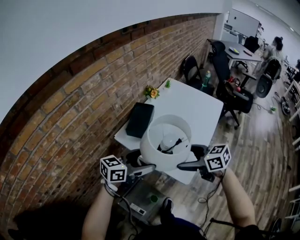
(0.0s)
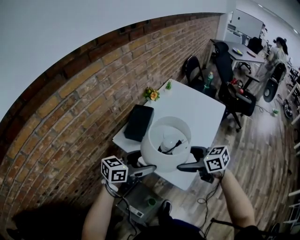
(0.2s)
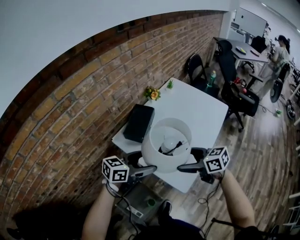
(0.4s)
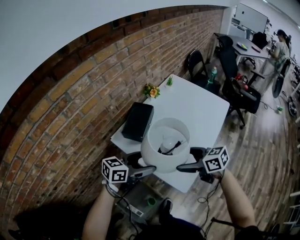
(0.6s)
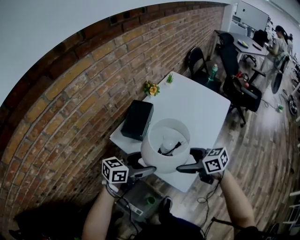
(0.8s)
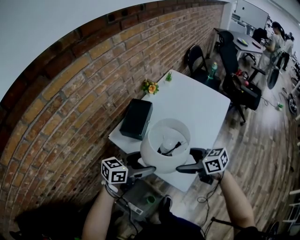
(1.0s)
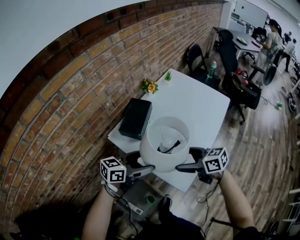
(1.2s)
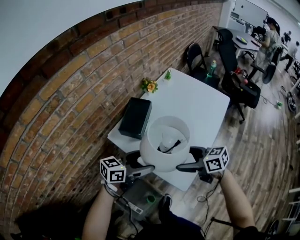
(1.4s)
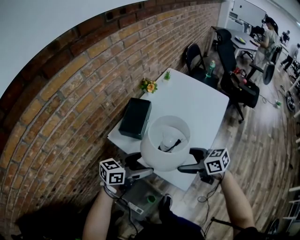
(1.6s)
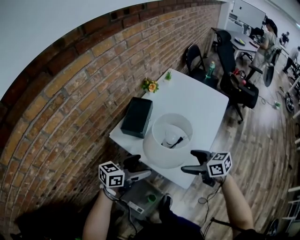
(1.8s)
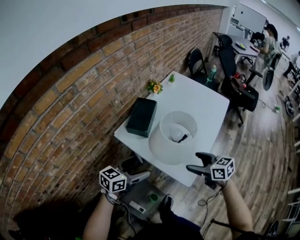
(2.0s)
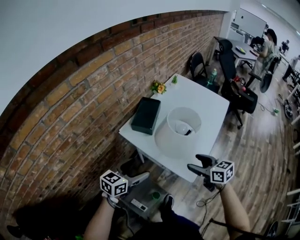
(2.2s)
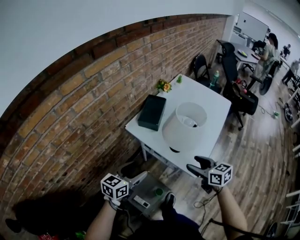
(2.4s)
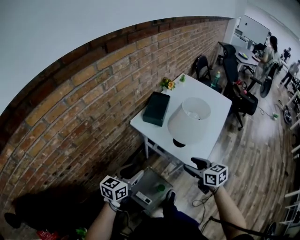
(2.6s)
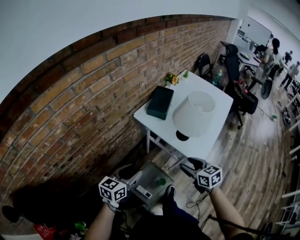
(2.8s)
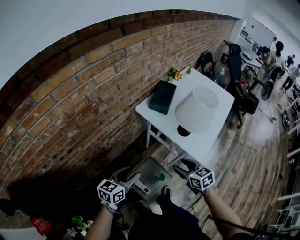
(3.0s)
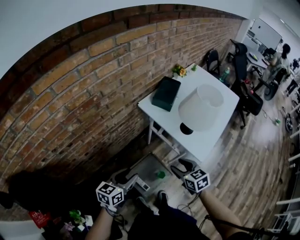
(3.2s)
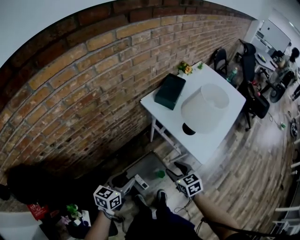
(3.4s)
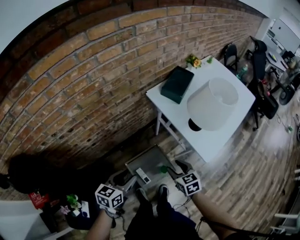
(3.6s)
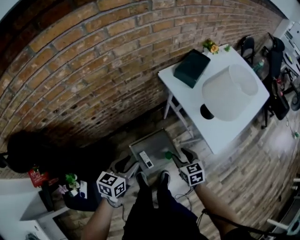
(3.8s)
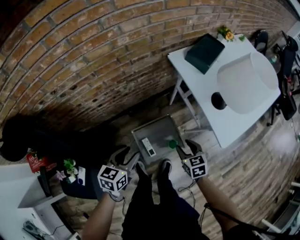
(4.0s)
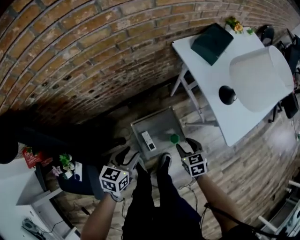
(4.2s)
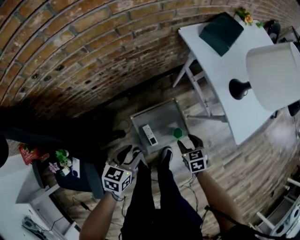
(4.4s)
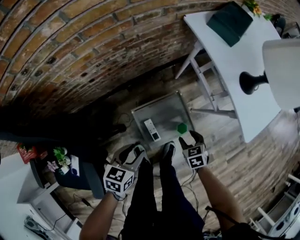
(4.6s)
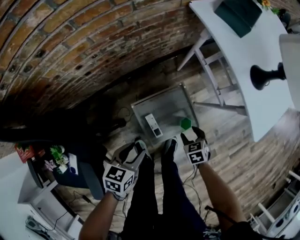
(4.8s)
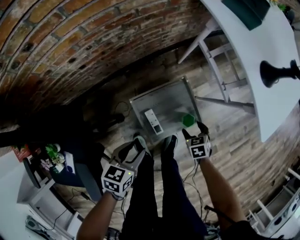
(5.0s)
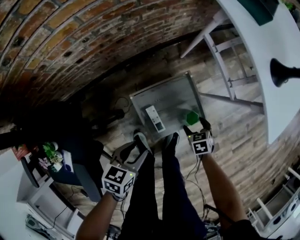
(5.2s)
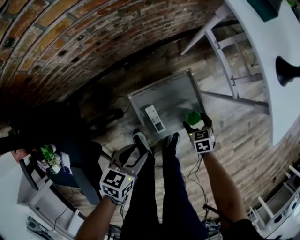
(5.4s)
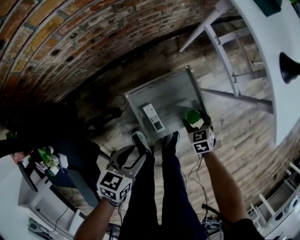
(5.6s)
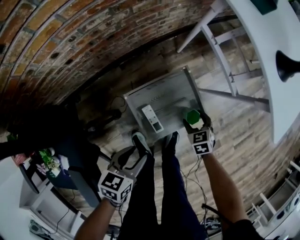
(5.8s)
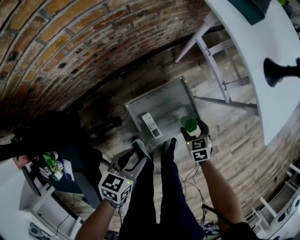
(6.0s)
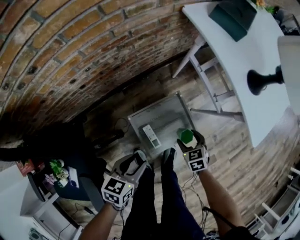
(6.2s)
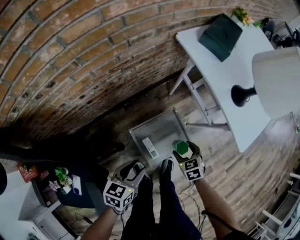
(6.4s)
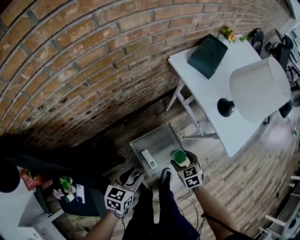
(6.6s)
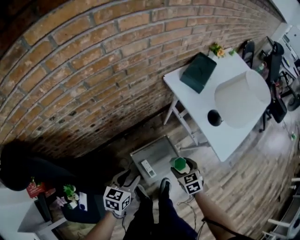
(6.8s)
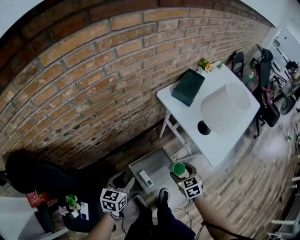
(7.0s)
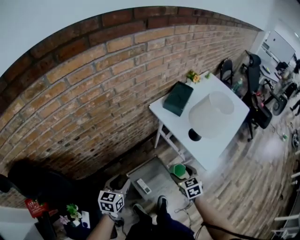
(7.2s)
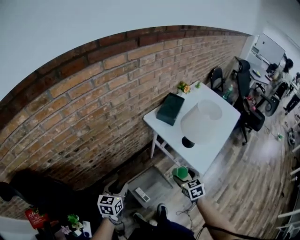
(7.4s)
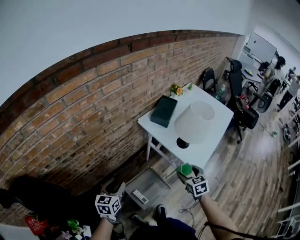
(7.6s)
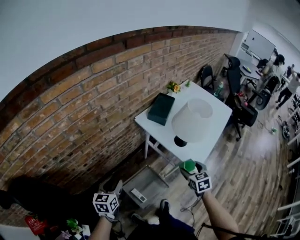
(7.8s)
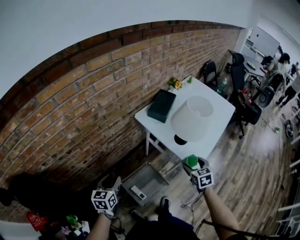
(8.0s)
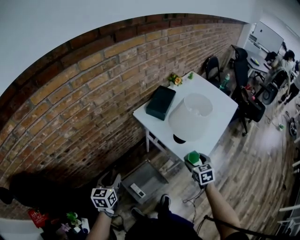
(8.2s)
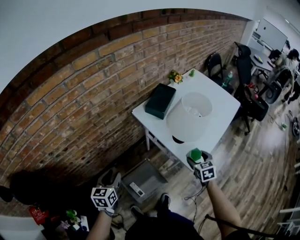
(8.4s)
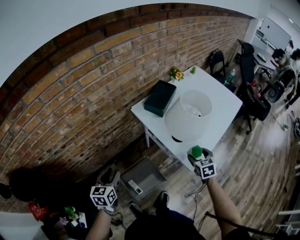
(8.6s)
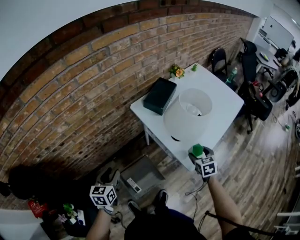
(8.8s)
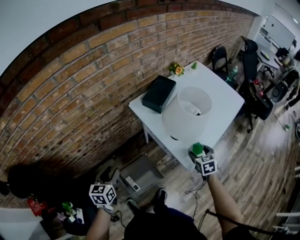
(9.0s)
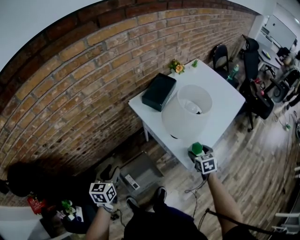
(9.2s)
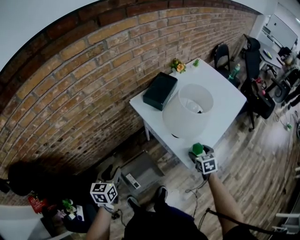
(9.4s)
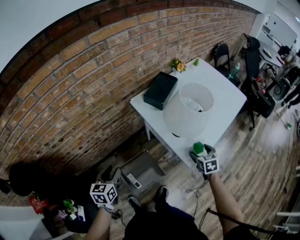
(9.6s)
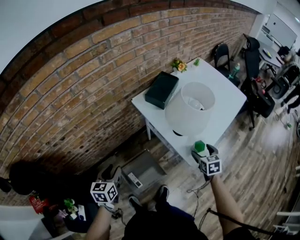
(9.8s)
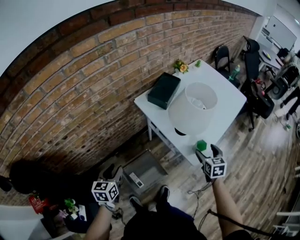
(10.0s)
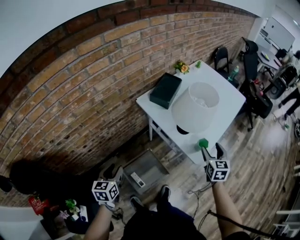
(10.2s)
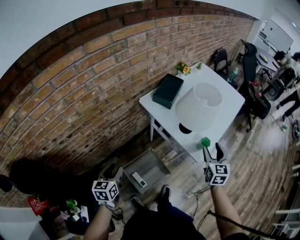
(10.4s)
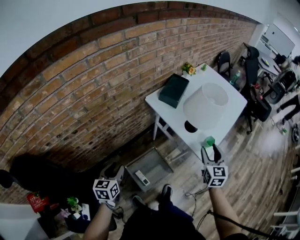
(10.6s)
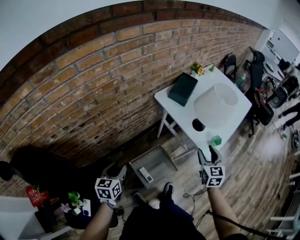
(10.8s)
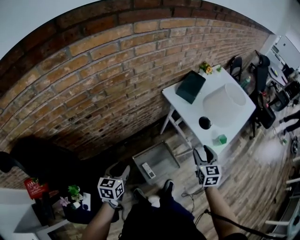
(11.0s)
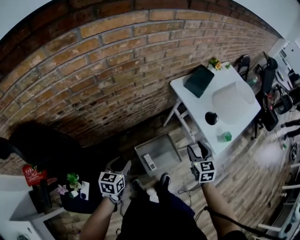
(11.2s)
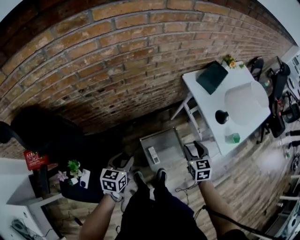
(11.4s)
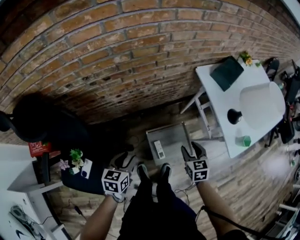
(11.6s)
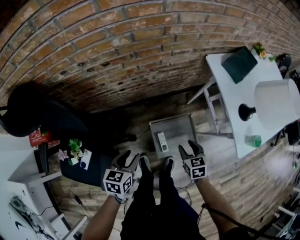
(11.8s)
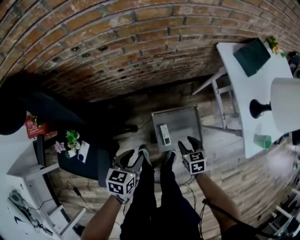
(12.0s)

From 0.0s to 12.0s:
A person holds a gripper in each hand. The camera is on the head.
From 0.0s to 1.6s: The grippers both shift downward by about 10 cm.
From 1.6s to 3.0s: The left gripper shifts by roughly 35 cm, changes its angle by some 30 degrees, and closes up. The right gripper changes place by roughly 30 cm, swivels some 30 degrees, and closes its fingers.
From 3.0s to 4.4s: The right gripper shifts about 30 cm downward, and changes its angle by roughly 20 degrees. The left gripper heads downward and backward, covering approximately 25 cm, and rotates approximately 30 degrees.
From 4.4s to 6.0s: Both grippers travel together downward, some 15 cm.
From 6.0s to 7.6s: Both grippers travel together upward, roughly 40 cm. The left gripper rotates roughly 20 degrees. The right gripper rotates some 30 degrees.
From 7.6s to 9.0s: The left gripper is displaced to the right and forward by about 10 cm. The right gripper heads to the right and forward, covering about 20 cm.
From 9.0s to 10.4s: The right gripper is displaced upward and backward by approximately 15 cm, and rotates roughly 30 degrees, while the left gripper goes approximately 5 cm to the left.
From 10.4s to 12.0s: The right gripper moves approximately 50 cm, and swivels about 50 degrees. The left gripper goes about 20 cm downward, and changes its angle by roughly 20 degrees.

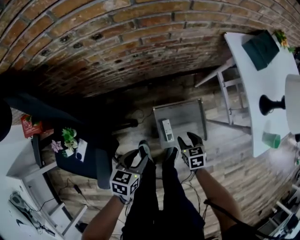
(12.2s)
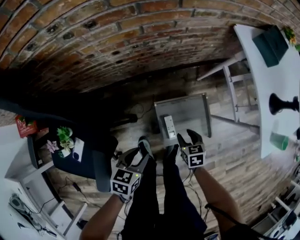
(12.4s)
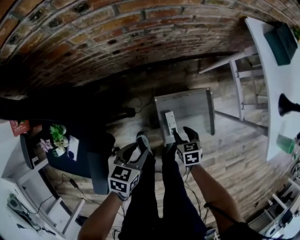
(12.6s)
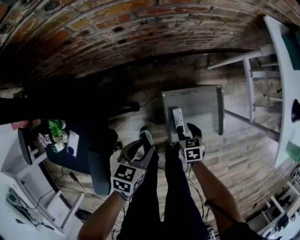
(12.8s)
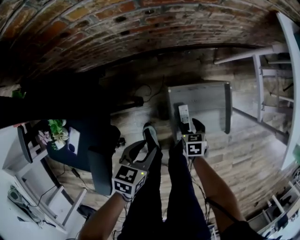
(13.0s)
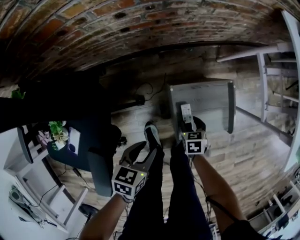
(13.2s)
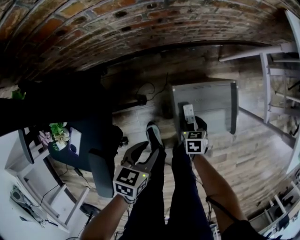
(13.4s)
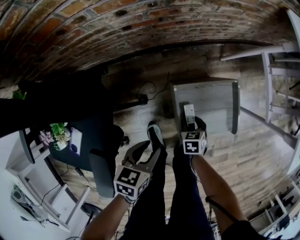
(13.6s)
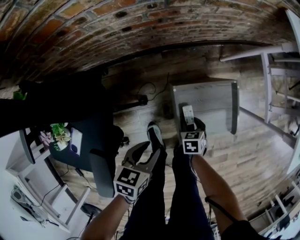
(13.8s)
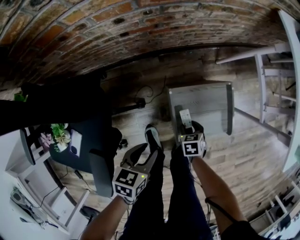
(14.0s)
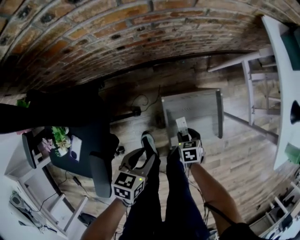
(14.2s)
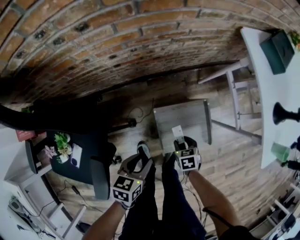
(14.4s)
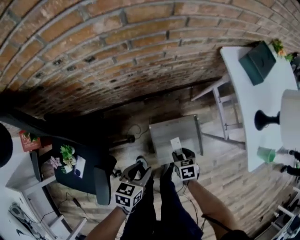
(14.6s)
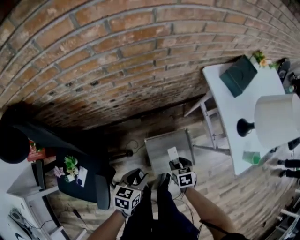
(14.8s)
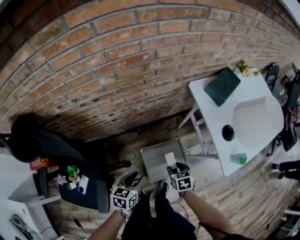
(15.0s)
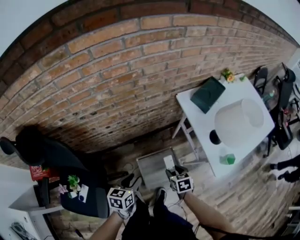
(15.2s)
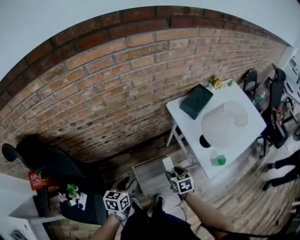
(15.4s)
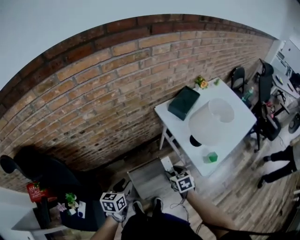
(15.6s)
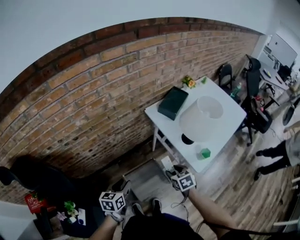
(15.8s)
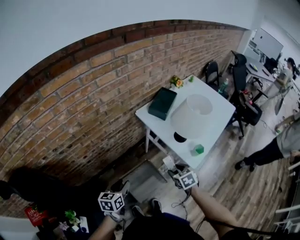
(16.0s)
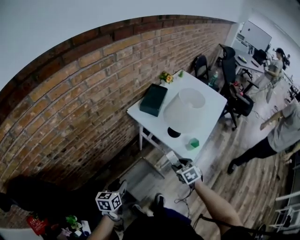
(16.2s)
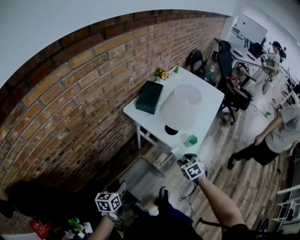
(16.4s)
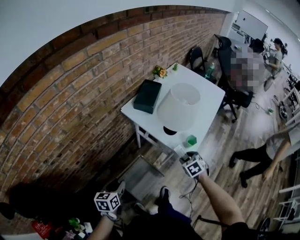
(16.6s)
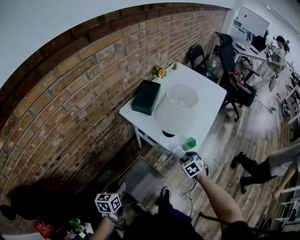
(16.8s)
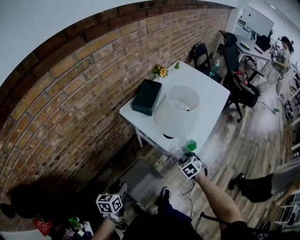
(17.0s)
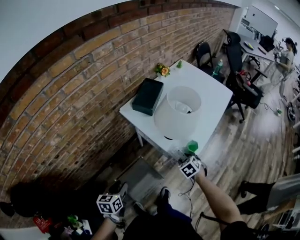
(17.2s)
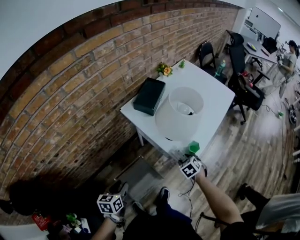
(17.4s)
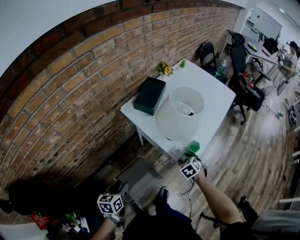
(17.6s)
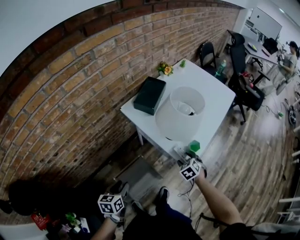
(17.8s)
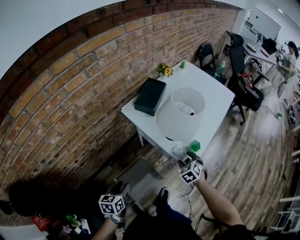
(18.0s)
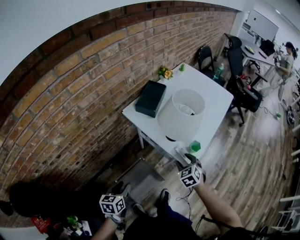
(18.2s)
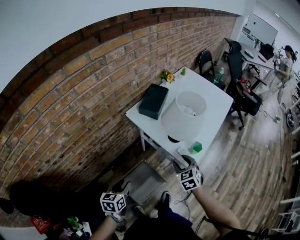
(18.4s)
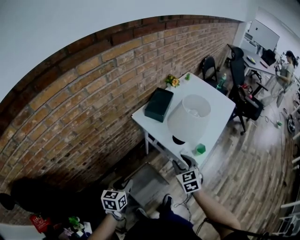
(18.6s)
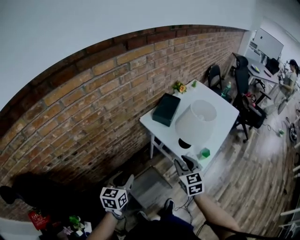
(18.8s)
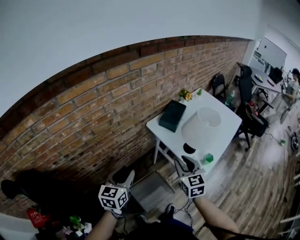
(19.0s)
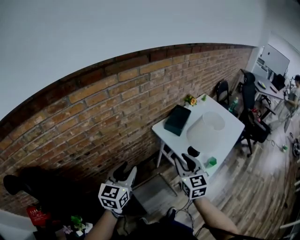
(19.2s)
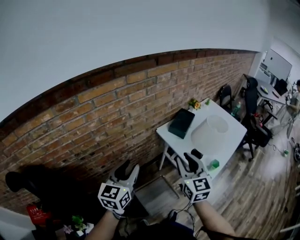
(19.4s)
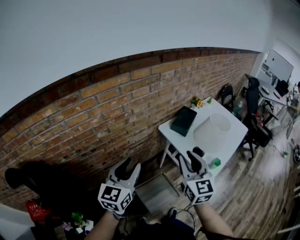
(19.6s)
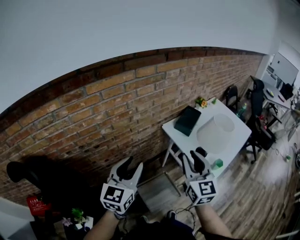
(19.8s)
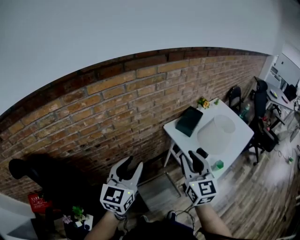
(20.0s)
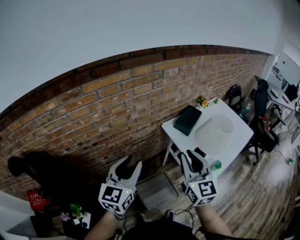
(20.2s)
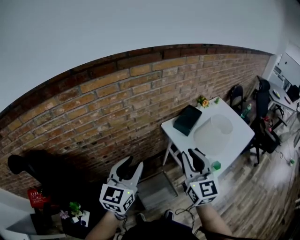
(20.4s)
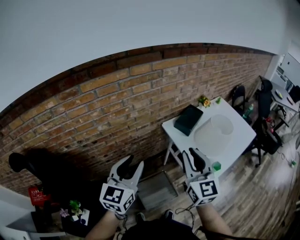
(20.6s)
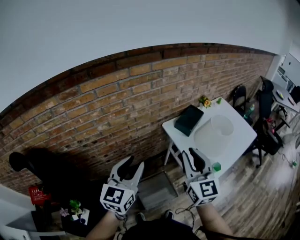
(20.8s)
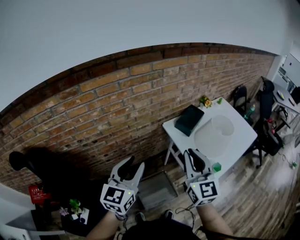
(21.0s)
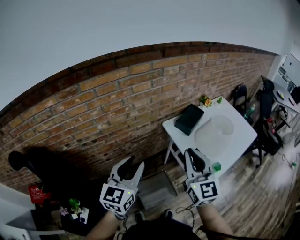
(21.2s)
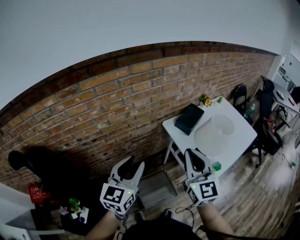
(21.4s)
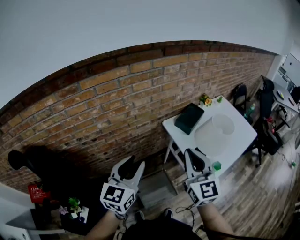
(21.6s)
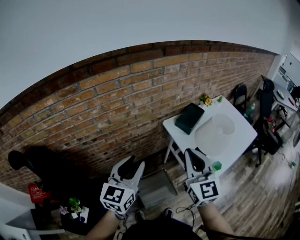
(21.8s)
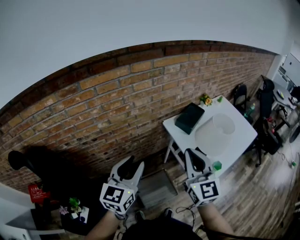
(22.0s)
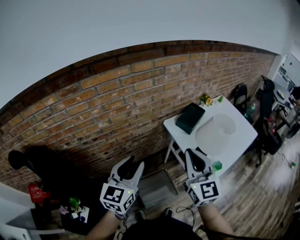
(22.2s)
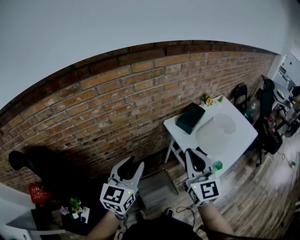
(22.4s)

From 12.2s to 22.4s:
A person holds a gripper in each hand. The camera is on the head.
From 12.2s to 13.6s: The left gripper heads downward, covering approximately 15 cm. The right gripper is displaced downward by about 25 cm.
From 13.6s to 15.2s: The grippers both shift upward by approximately 40 cm.
From 15.2s to 16.6s: The right gripper moves approximately 25 cm, and rotates some 30 degrees; the left gripper changes place by approximately 10 cm.
From 16.6s to 18.0s: The right gripper moves forward, roughly 5 cm. The left gripper travels to the right by roughly 5 cm.
From 18.0s to 19.4s: The two grippers go approximately 40 cm upward and to the left. The left gripper tilts its fingers approximately 30 degrees upward. The right gripper tilts its fingers roughly 40 degrees upward.
From 19.4s to 21.0s: The left gripper is displaced to the right by approximately 5 cm. Meanwhile the right gripper changes place by about 5 cm.
From 21.0s to 22.4s: There are only small adjustments of the grippers.

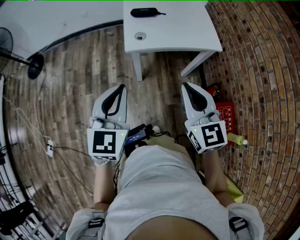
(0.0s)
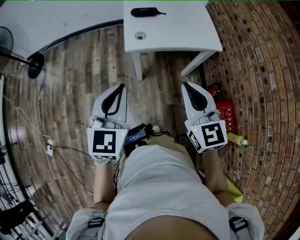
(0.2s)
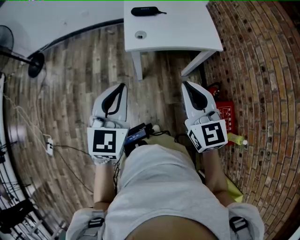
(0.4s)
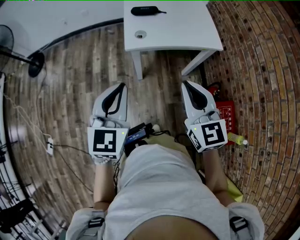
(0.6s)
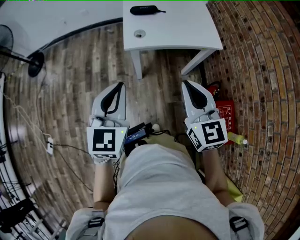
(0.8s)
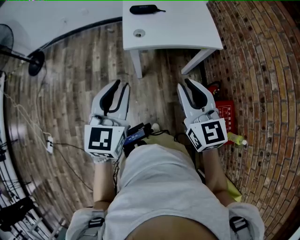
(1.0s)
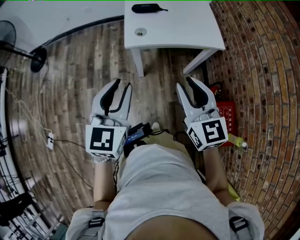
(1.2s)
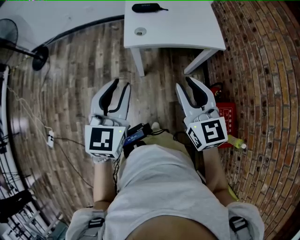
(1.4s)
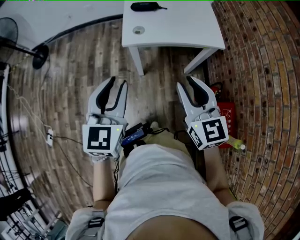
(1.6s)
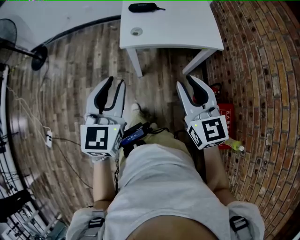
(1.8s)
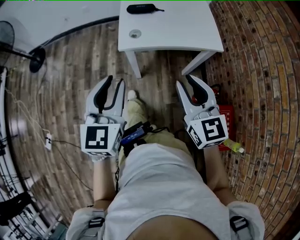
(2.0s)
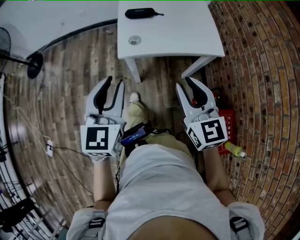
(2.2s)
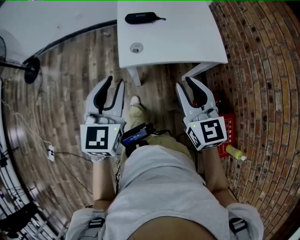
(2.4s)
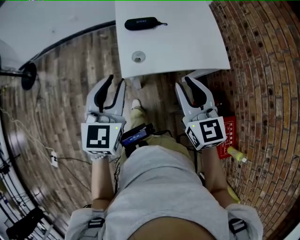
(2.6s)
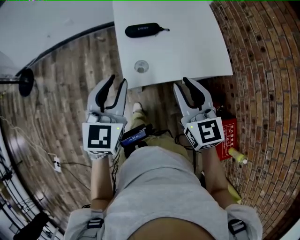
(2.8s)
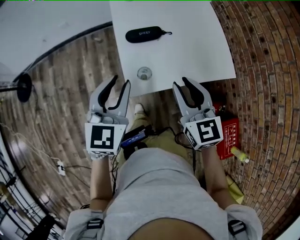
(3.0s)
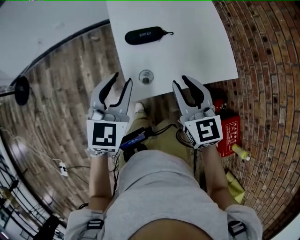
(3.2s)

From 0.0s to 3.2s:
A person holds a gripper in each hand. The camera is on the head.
From 0.0s to 1.6s: The right gripper opens up.
From 1.6s to 3.2s: The grippers both shift forward by about 30 cm.
